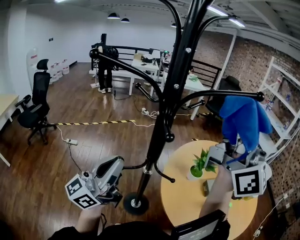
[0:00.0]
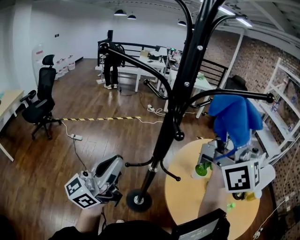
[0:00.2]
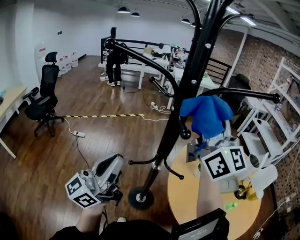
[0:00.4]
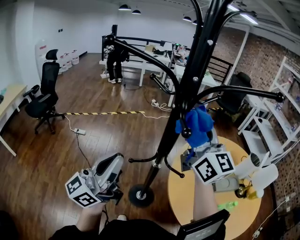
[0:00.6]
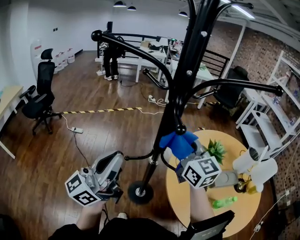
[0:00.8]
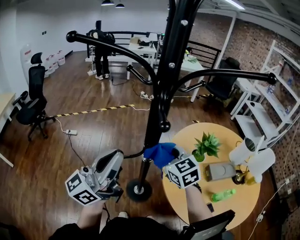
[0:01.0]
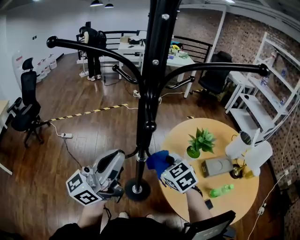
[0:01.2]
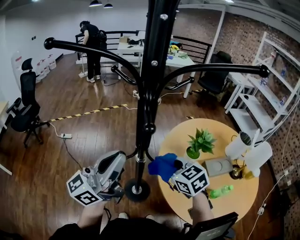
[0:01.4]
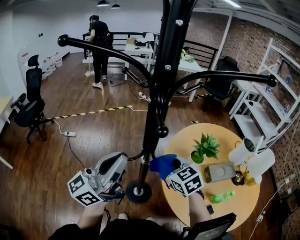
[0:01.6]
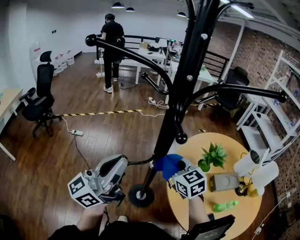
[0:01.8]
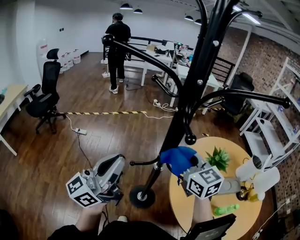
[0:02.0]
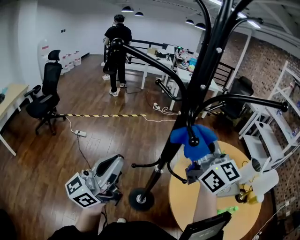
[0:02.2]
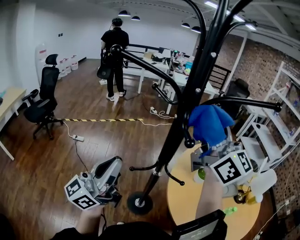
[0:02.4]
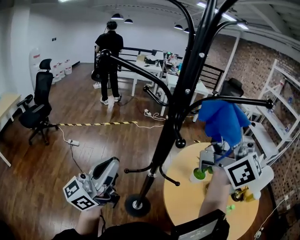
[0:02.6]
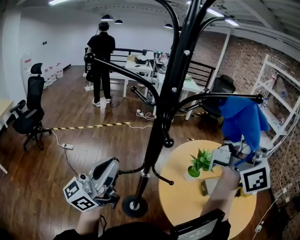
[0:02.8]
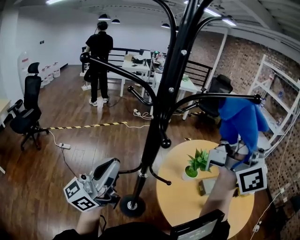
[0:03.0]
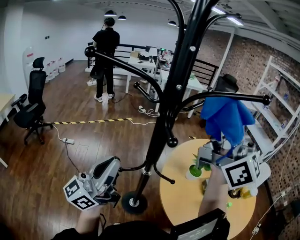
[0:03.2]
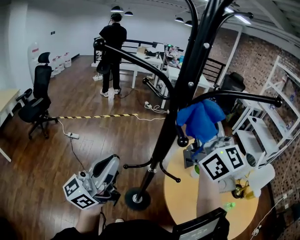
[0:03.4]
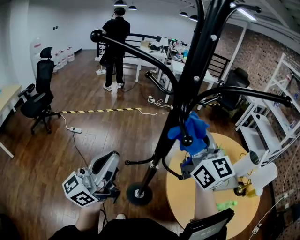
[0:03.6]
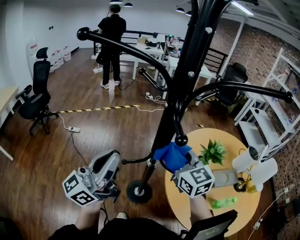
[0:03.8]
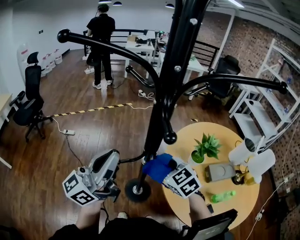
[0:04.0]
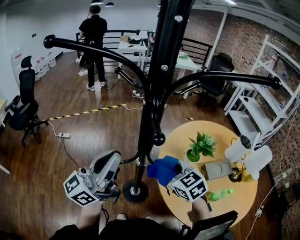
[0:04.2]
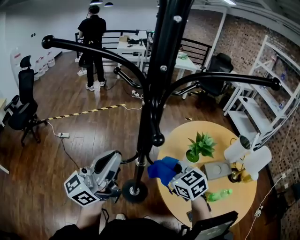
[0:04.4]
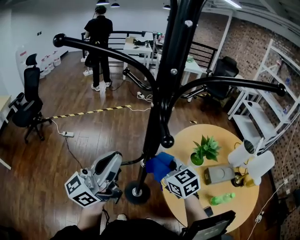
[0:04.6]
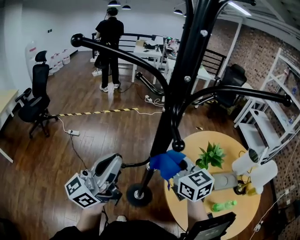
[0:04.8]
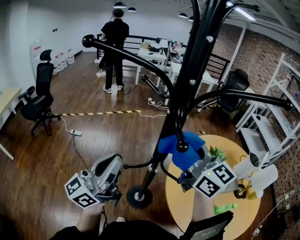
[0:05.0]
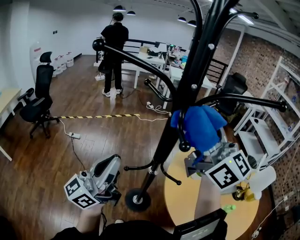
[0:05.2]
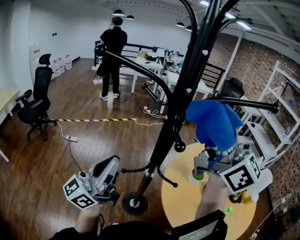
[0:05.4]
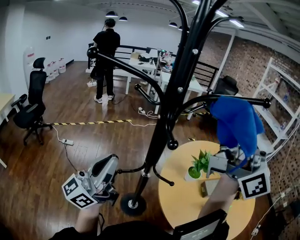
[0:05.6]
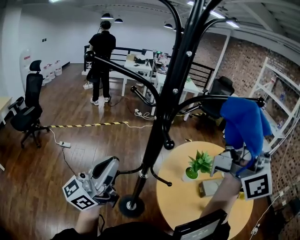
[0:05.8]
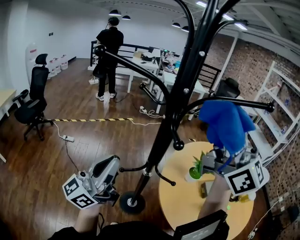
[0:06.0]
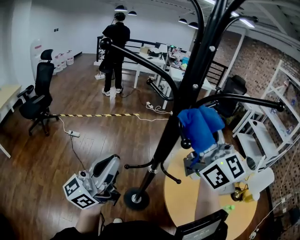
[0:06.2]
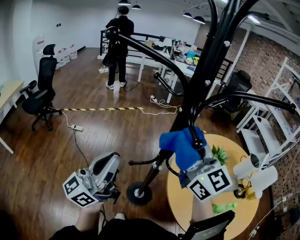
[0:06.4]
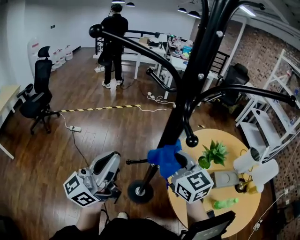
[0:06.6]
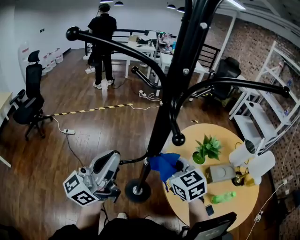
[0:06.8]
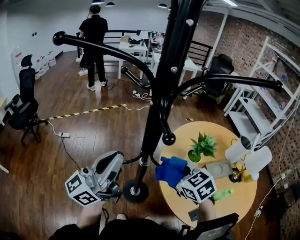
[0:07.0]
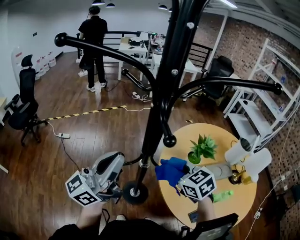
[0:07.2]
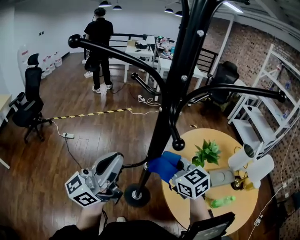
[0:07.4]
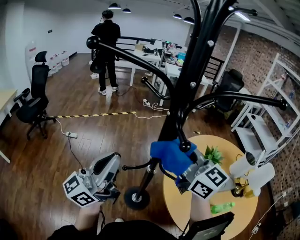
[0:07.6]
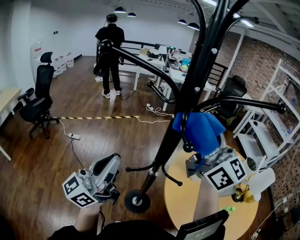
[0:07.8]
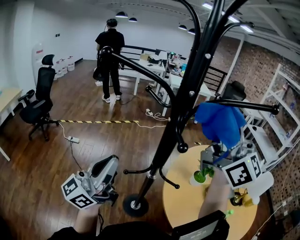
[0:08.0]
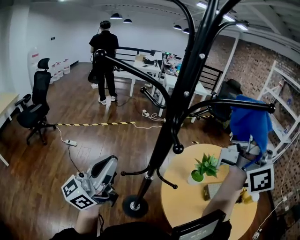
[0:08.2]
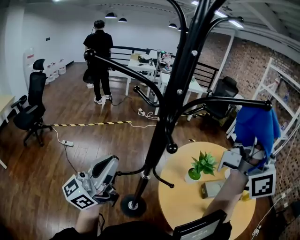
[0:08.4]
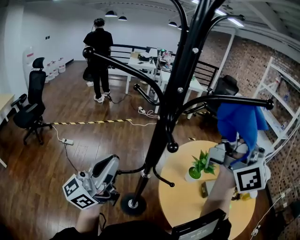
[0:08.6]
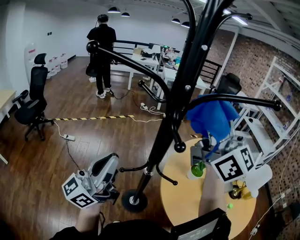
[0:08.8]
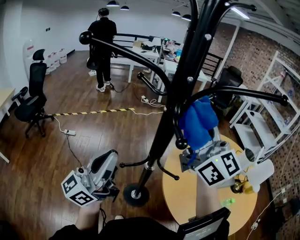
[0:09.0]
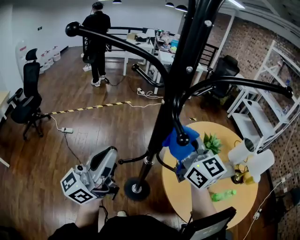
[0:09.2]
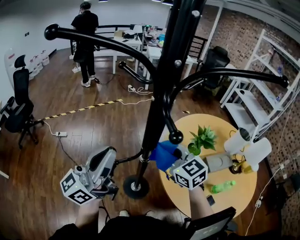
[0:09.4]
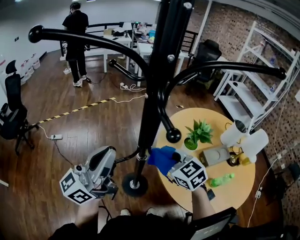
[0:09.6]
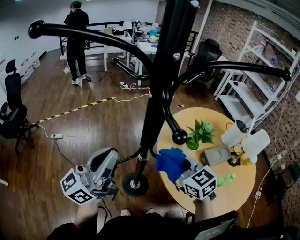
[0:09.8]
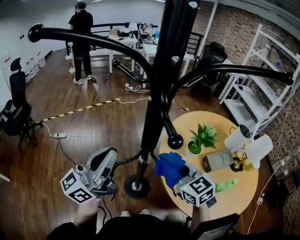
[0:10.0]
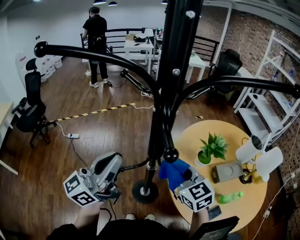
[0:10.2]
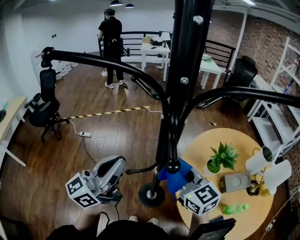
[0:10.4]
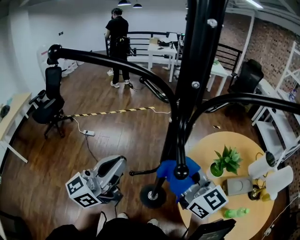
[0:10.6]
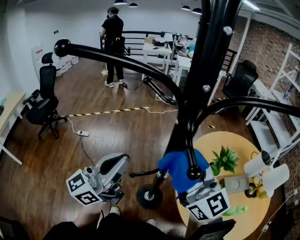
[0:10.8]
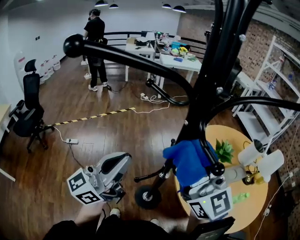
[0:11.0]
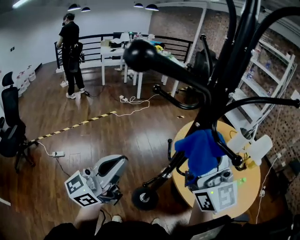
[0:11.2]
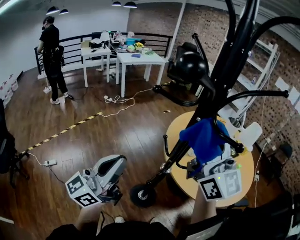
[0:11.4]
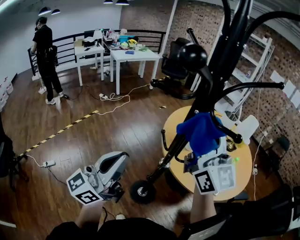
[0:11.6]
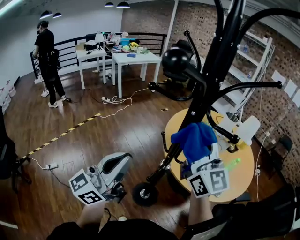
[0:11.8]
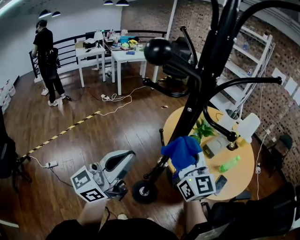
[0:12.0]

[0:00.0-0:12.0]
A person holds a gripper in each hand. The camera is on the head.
0:00.0 to 0:01.6: The right gripper goes roughly 40 cm downward, and points its fingers about 80 degrees further downward.
0:01.6 to 0:03.0: The right gripper heads upward, covering approximately 40 cm, and tilts its fingers roughly 80 degrees upward.
0:03.0 to 0:04.4: The right gripper travels downward by about 40 cm, and points its fingers about 80 degrees further downward.
0:04.4 to 0:06.0: The right gripper heads upward, covering some 40 cm, and points its fingers about 70 degrees further upward. The left gripper ends up some 5 cm from where it was.
0:06.0 to 0:07.6: The right gripper shifts roughly 20 cm downward, and changes its angle by some 30 degrees.
0:07.6 to 0:09.0: The right gripper moves upward, some 10 cm, and swivels some 20 degrees.
0:09.0 to 0:10.4: The right gripper heads downward, covering approximately 25 cm, and points its fingers about 30 degrees further downward.
0:10.4 to 0:12.0: The left gripper rotates approximately 30 degrees. Meanwhile the right gripper goes some 10 cm upward, and swivels about 50 degrees.

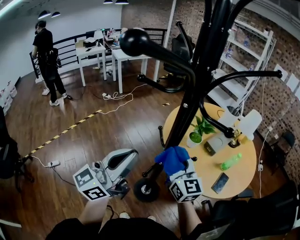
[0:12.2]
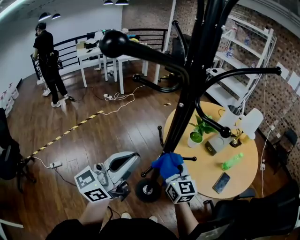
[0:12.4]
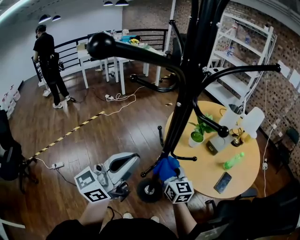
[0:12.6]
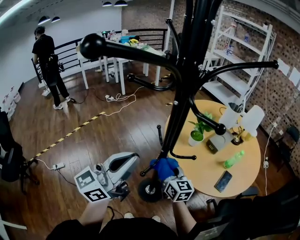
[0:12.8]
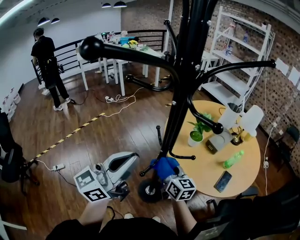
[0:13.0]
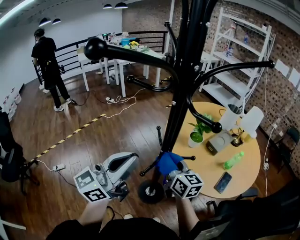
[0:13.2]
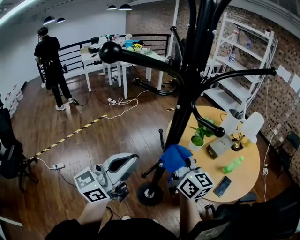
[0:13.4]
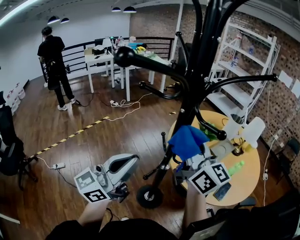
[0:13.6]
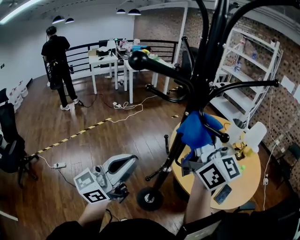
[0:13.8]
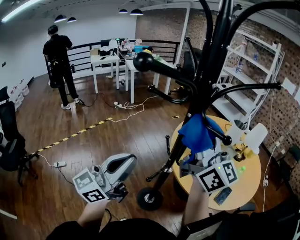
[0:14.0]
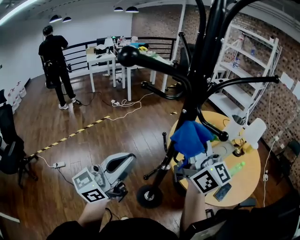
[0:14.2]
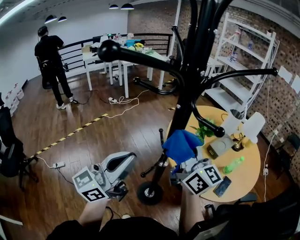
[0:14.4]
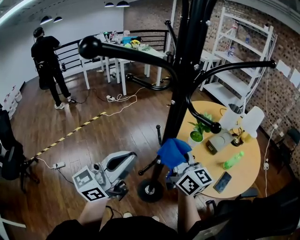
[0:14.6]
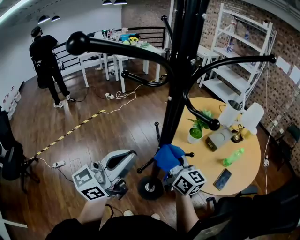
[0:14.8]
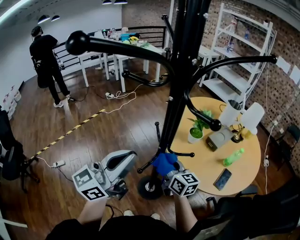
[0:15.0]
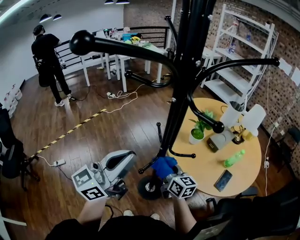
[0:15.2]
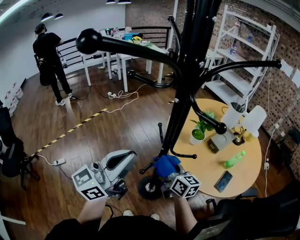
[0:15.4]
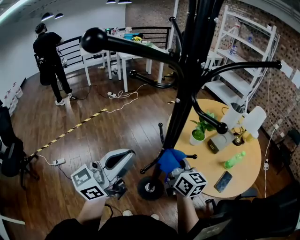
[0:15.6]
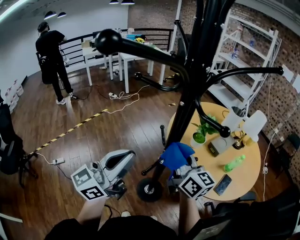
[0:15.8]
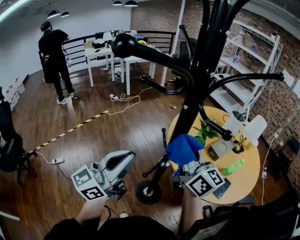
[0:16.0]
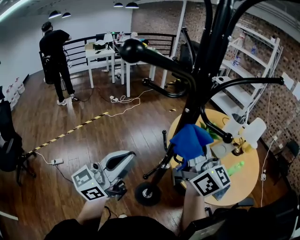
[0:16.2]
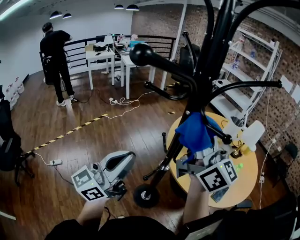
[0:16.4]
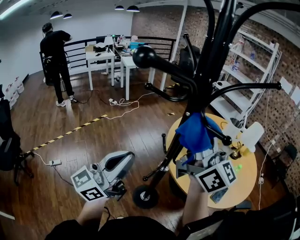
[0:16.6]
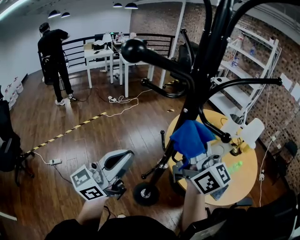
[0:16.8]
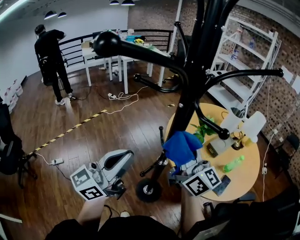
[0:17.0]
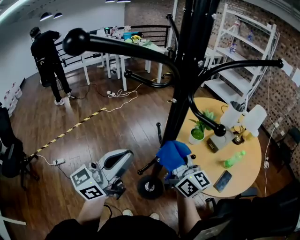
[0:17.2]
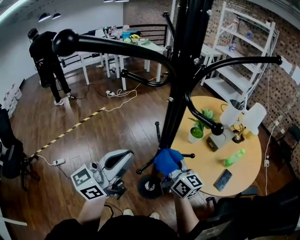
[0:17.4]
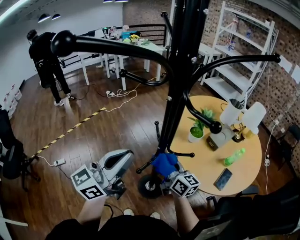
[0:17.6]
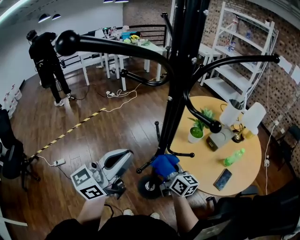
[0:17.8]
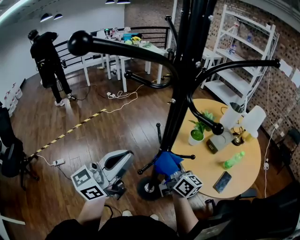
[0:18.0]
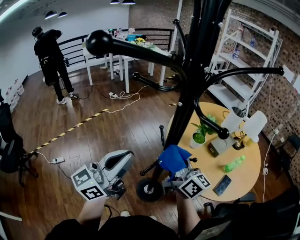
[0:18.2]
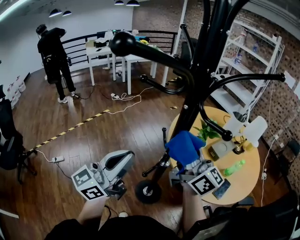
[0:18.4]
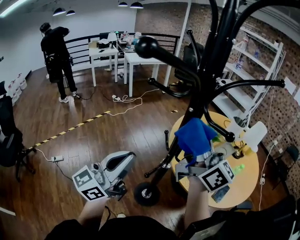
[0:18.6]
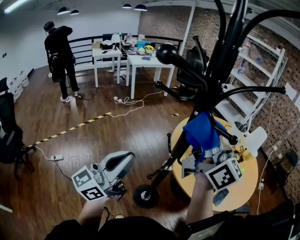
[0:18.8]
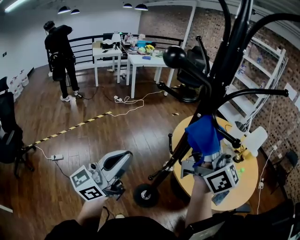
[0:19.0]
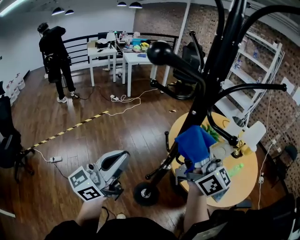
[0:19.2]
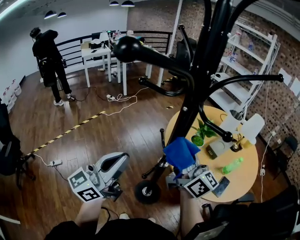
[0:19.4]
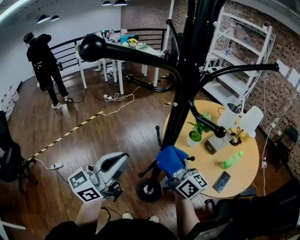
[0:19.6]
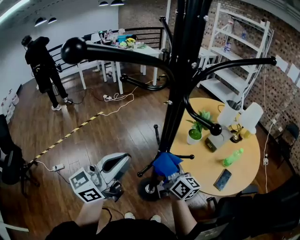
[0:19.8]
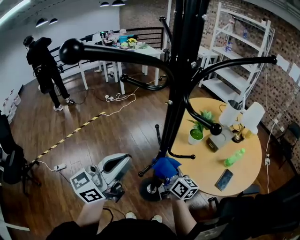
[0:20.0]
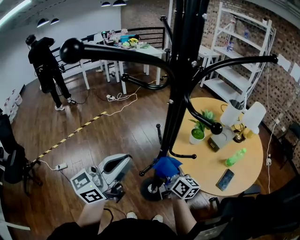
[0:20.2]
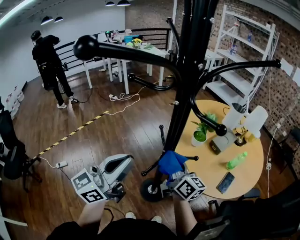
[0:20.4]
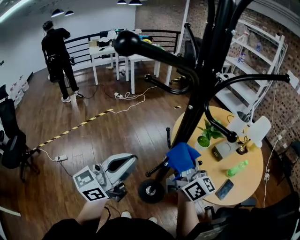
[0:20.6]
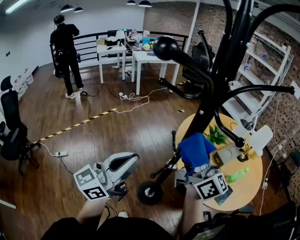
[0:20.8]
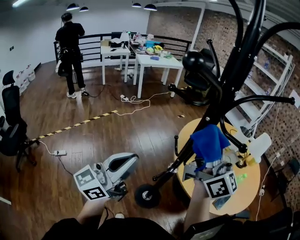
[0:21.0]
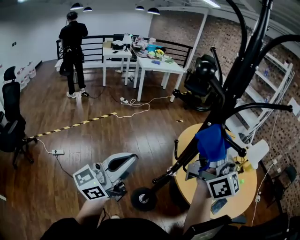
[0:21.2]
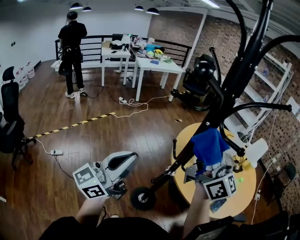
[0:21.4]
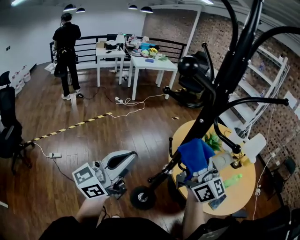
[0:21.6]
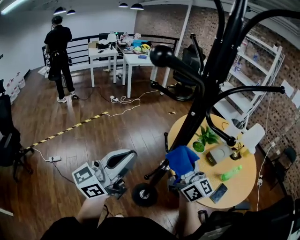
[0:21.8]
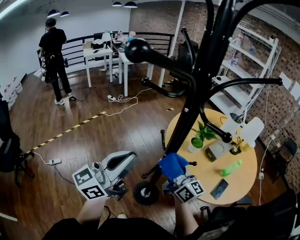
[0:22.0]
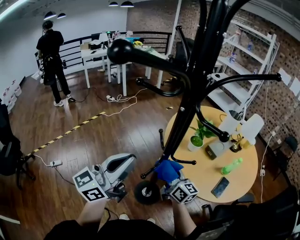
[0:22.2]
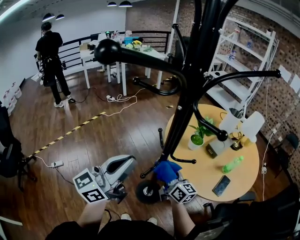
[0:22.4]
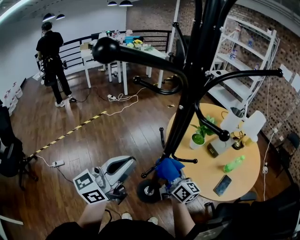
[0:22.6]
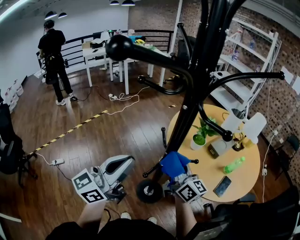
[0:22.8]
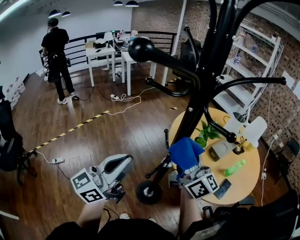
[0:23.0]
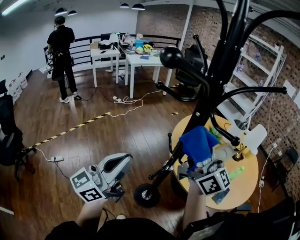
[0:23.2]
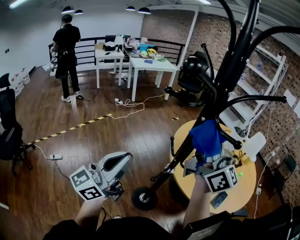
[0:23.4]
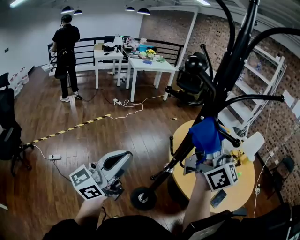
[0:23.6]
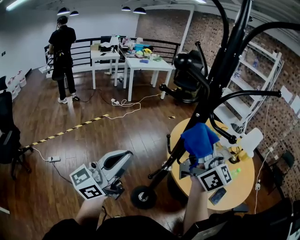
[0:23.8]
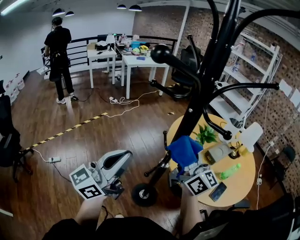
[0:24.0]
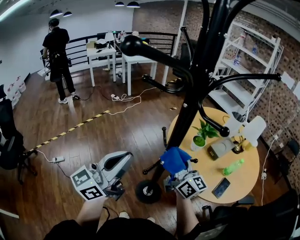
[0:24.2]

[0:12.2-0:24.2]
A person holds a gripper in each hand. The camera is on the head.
0:12.2 to 0:13.8: The right gripper travels upward by roughly 25 cm, and swivels roughly 30 degrees.
0:13.8 to 0:15.2: The right gripper is displaced downward by some 35 cm, and angles its fingers downward, by approximately 30 degrees.
0:15.2 to 0:16.6: The right gripper moves upward, about 35 cm, and tips its fingers upward by about 40 degrees.
0:16.6 to 0:18.2: The right gripper goes some 20 cm downward, and turns by roughly 20 degrees.
0:18.2 to 0:19.8: The right gripper travels upward and back again, roughly 20 cm each way.
0:19.8 to 0:21.2: The left gripper travels to the left by about 5 cm, while the right gripper travels upward by approximately 30 cm, and rotates some 30 degrees.
0:21.2 to 0:22.6: The left gripper heads to the right, covering some 5 cm. Meanwhile the right gripper is displaced downward by roughly 30 cm, and changes its angle by roughly 30 degrees.
0:22.6 to 0:24.2: The right gripper reaches approximately 30 cm upward, then returns.
